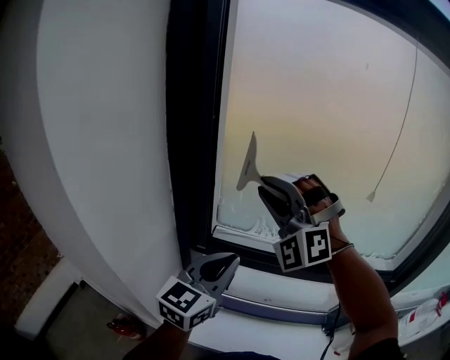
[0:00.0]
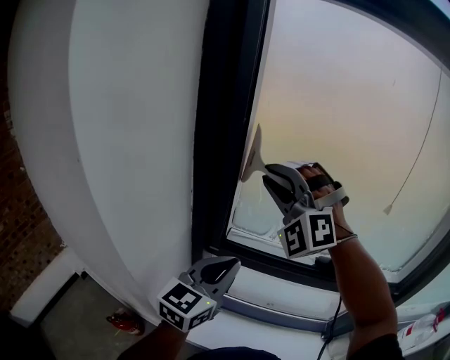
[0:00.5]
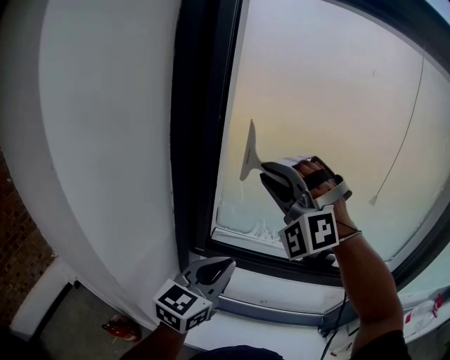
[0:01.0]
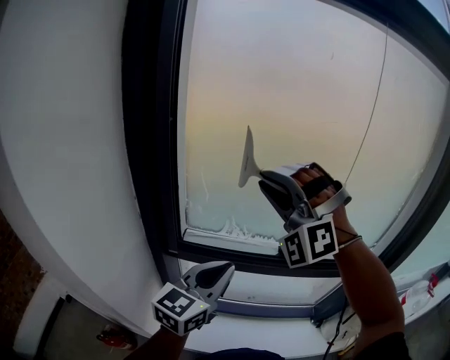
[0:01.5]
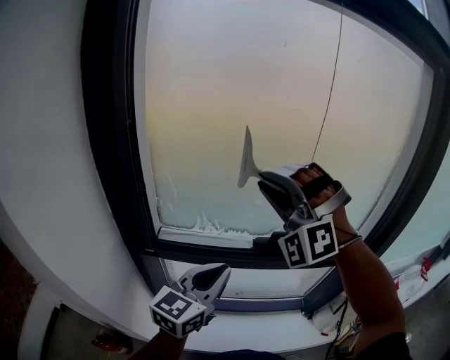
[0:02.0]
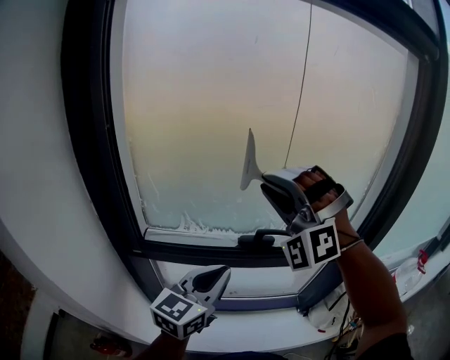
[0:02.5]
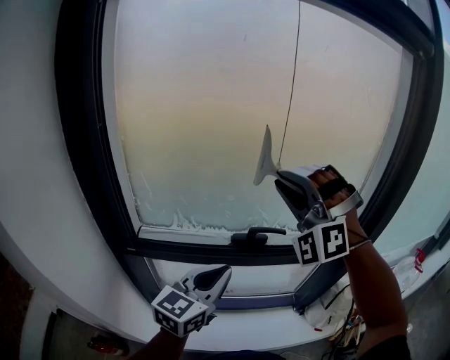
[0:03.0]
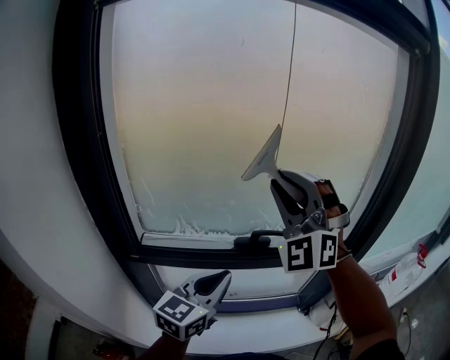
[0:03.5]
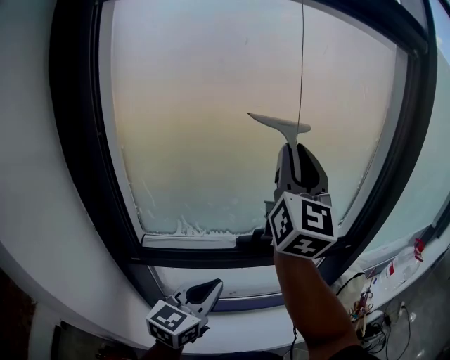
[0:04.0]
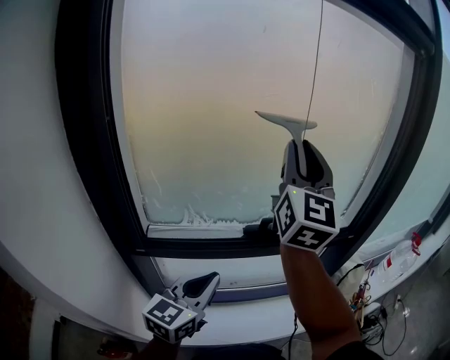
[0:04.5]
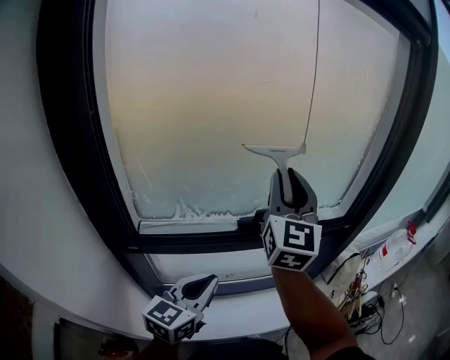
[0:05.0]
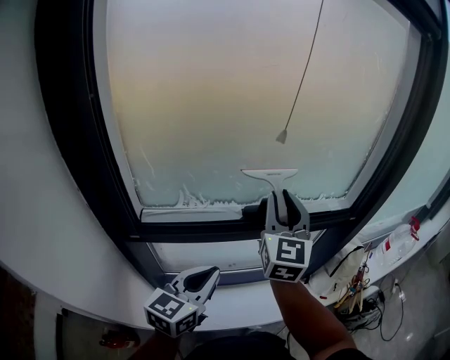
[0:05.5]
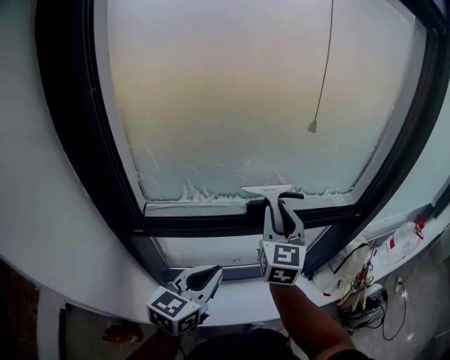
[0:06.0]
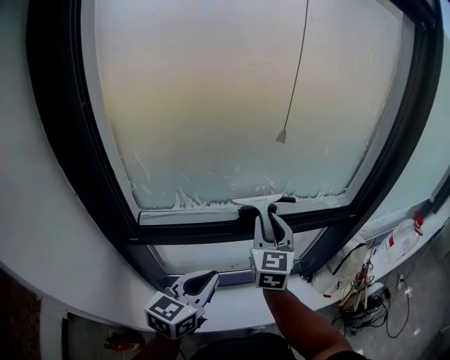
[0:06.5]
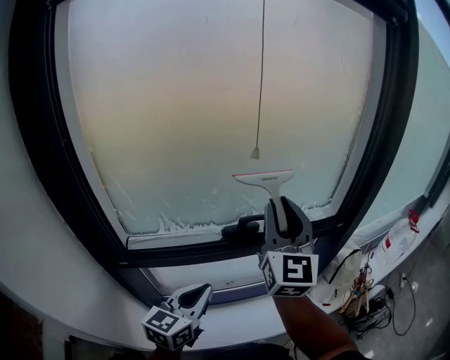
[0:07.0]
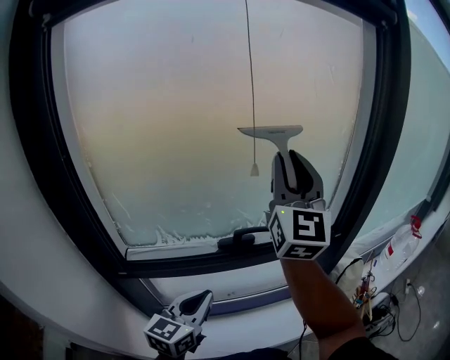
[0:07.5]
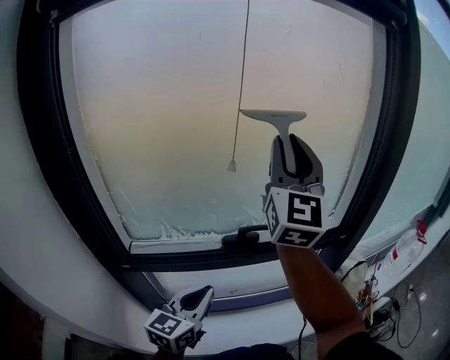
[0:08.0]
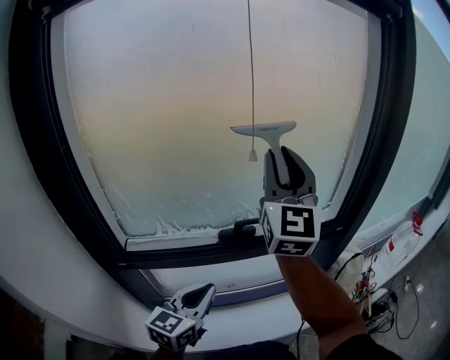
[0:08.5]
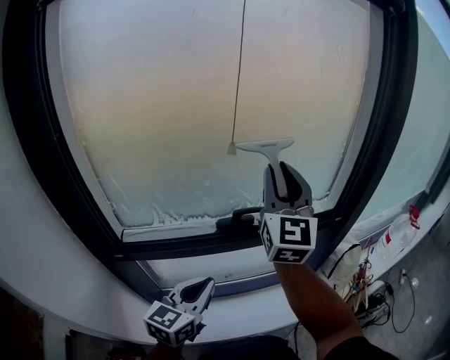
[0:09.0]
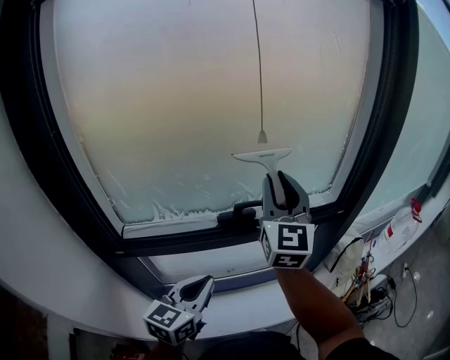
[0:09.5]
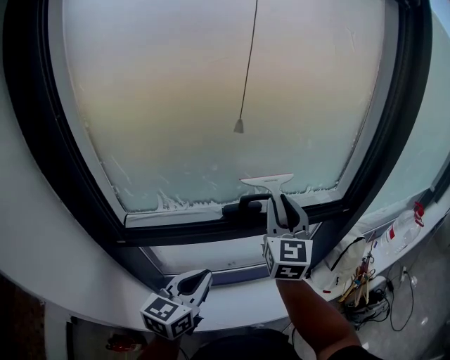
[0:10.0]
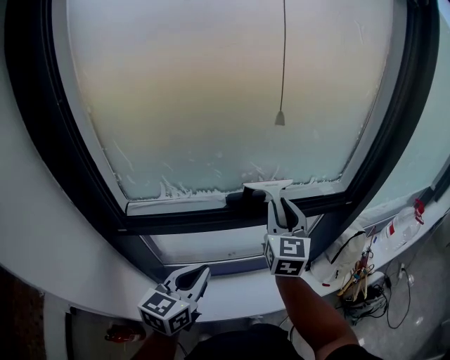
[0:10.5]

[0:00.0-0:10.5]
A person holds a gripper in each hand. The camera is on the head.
0:00.0 to 0:02.0: The grippers both shift to the right by some 15 cm.
0:02.0 to 0:04.0: The right gripper moves to the right and upward, approximately 15 cm, and rotates around the line of its fingers by approximately 90 degrees, clockwise from behind.
0:04.0 to 0:06.5: The left gripper is displaced downward by approximately 5 cm, while the right gripper travels downward by approximately 30 cm, and tilts its fingers roughly 30 degrees downward.
0:06.5 to 0:08.5: The right gripper is displaced upward by about 25 cm, and swivels roughly 30 degrees, while the left gripper moves approximately 5 cm.
0:08.5 to 0:10.5: The right gripper travels downward by some 25 cm, and swivels approximately 30 degrees, while the left gripper changes place by roughly 5 cm.

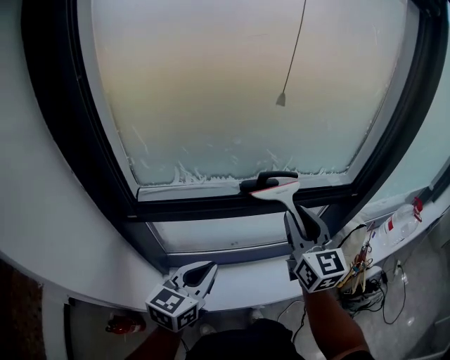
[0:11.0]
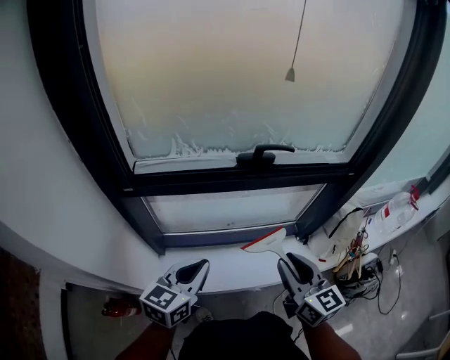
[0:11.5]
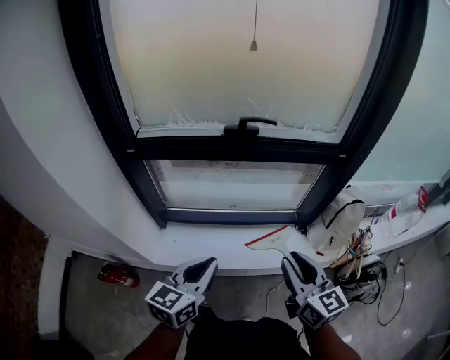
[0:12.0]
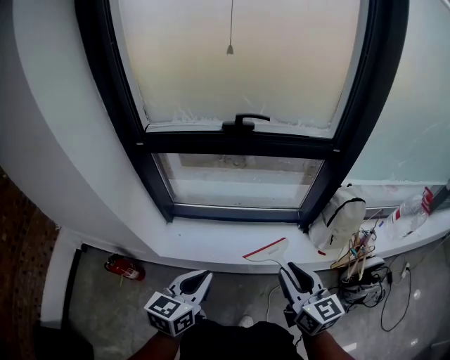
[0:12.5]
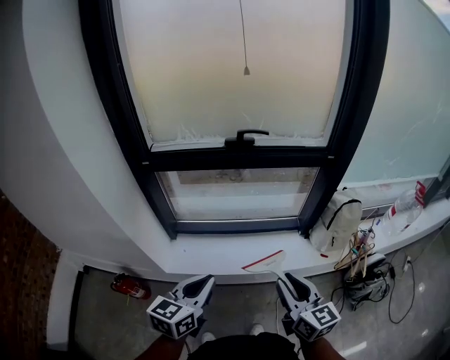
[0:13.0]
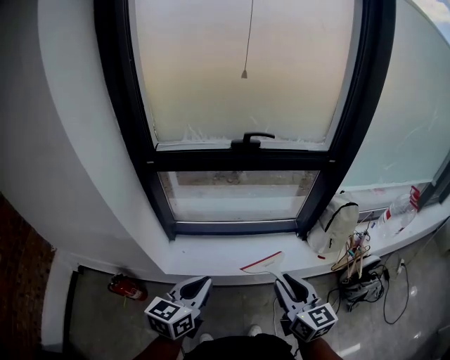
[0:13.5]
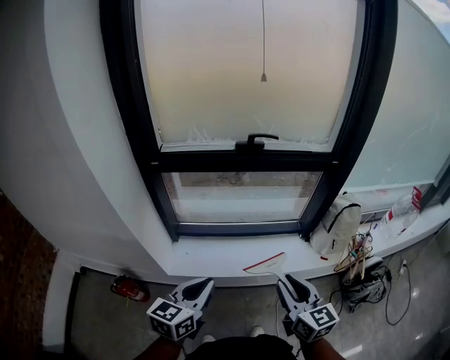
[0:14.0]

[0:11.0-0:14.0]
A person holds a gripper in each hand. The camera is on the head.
0:11.0 to 0:12.5: The left gripper shifts about 30 cm backward and to the right, while the right gripper travels backward, to the right and downward by roughly 40 cm, and turns by roughly 30 degrees.
0:12.5 to 0:14.0: The grippers both shift to the left by some 10 cm.

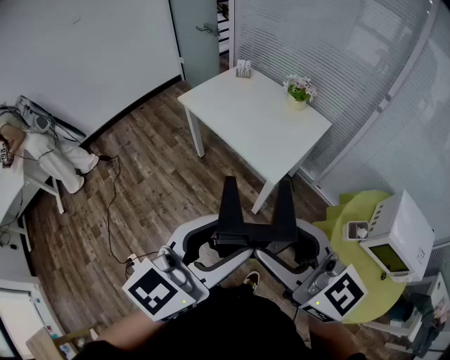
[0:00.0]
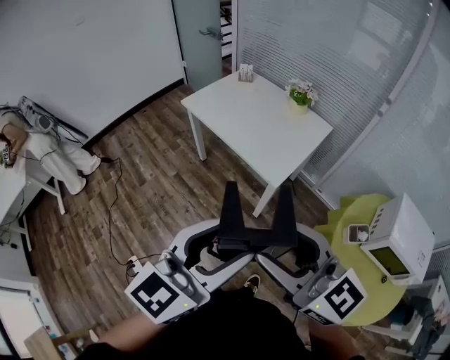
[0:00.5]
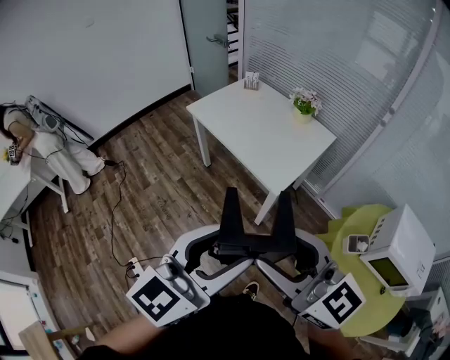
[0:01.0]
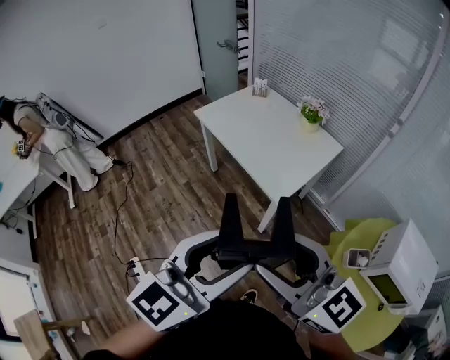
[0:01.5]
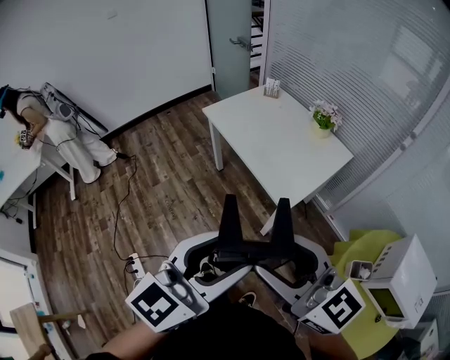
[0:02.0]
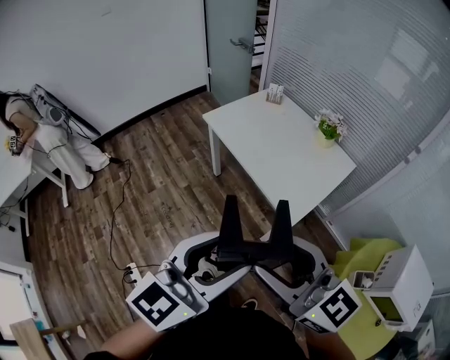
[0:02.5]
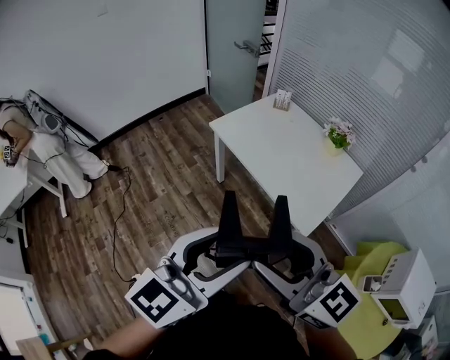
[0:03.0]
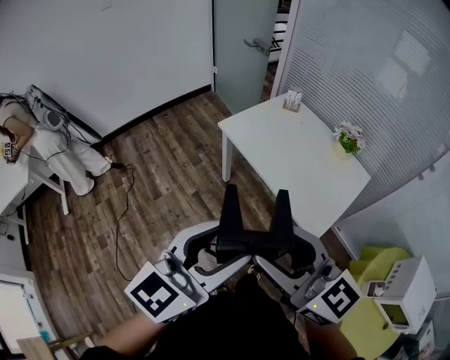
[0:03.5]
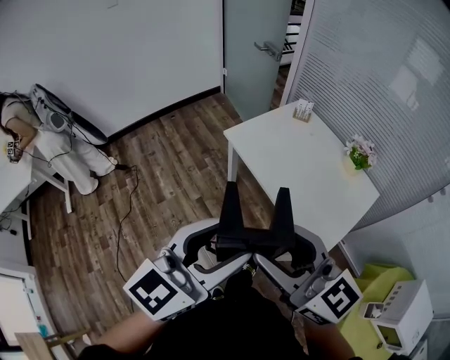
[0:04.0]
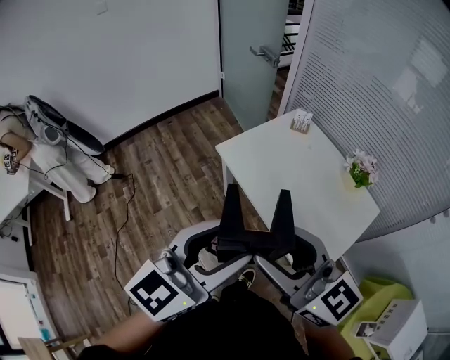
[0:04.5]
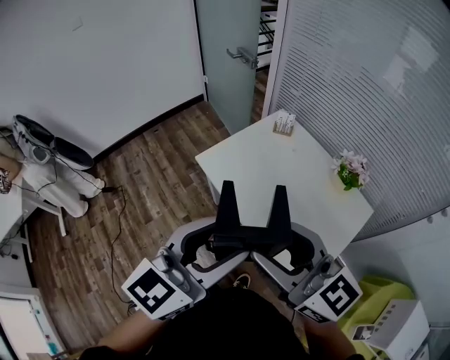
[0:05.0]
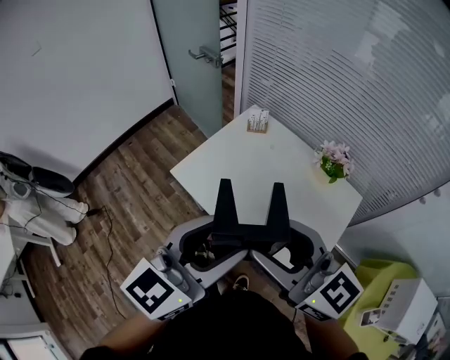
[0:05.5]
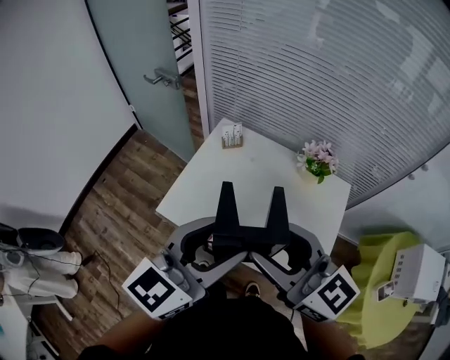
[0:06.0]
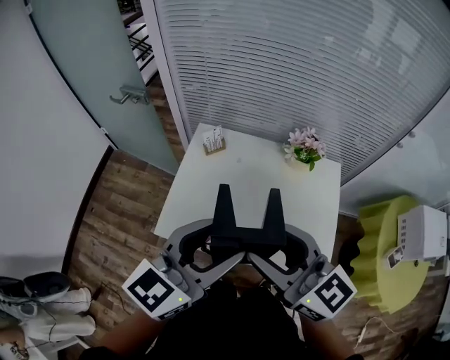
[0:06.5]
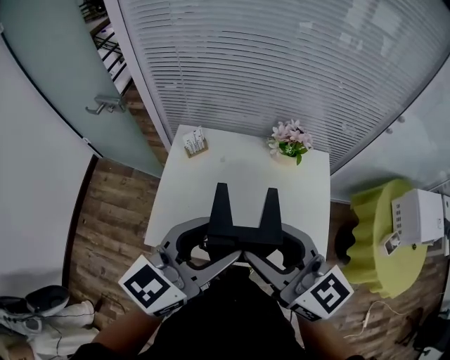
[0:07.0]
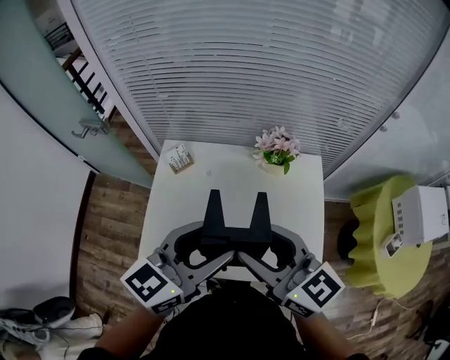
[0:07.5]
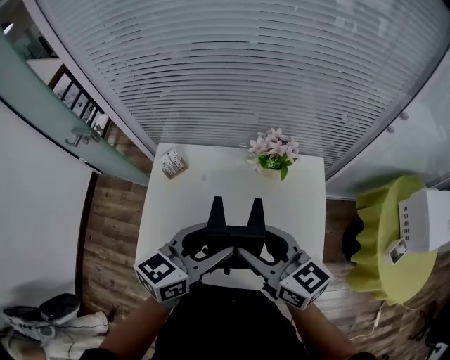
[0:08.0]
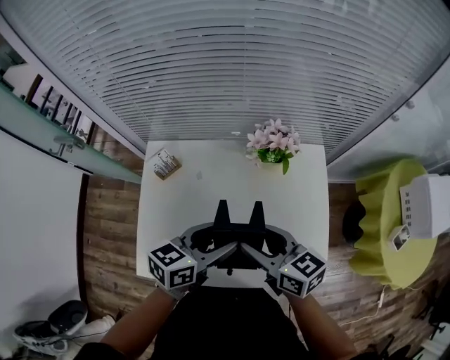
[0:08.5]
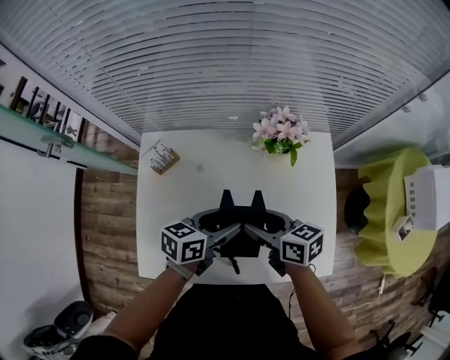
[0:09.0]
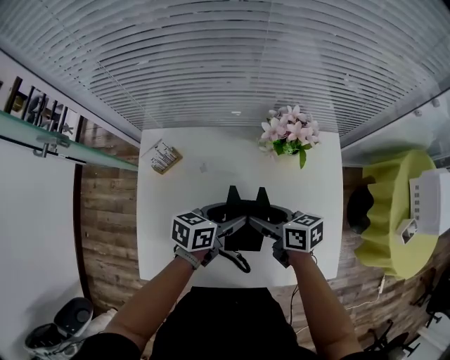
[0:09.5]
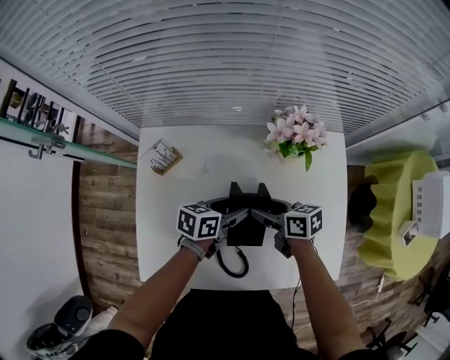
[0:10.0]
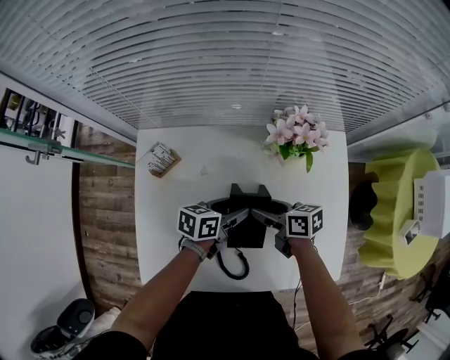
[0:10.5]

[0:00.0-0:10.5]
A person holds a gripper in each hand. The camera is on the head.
0:00.0 to 0:02.0: There are only small adjustments of the grippers.
0:02.0 to 0:04.0: Both grippers move forward and to the left, roughly 30 cm.
0:04.0 to 0:06.5: The left gripper shifts by some 40 cm, and rotates approximately 40 degrees. Meanwhile the right gripper shifts by roughly 40 cm, and turns by some 40 degrees.
0:06.5 to 0:08.5: Both grippers move downward, forward and to the right, approximately 30 cm. The right gripper swivels approximately 30 degrees. The left gripper rotates some 30 degrees.
0:08.5 to 0:10.5: The two grippers go approximately 25 cm downward and forward. The right gripper changes its angle by about 30 degrees. Meanwhile the left gripper turns by approximately 20 degrees.

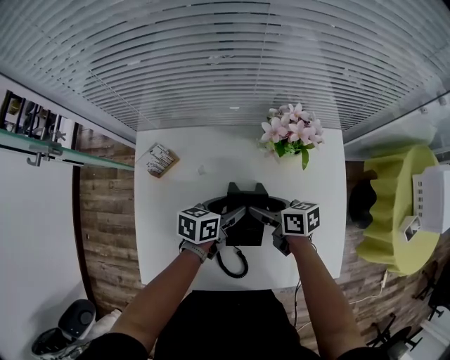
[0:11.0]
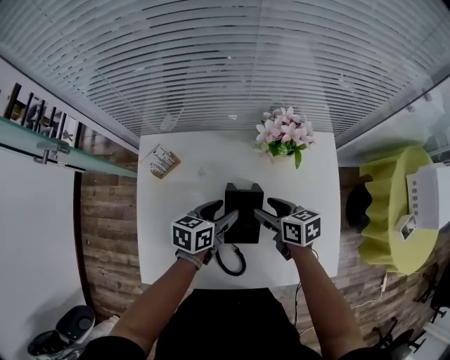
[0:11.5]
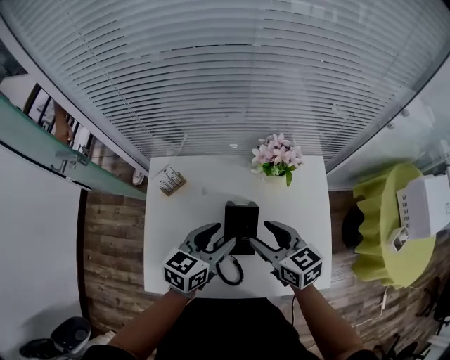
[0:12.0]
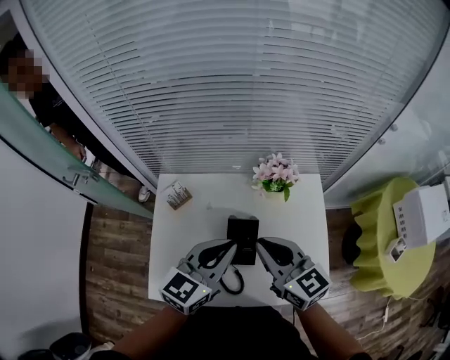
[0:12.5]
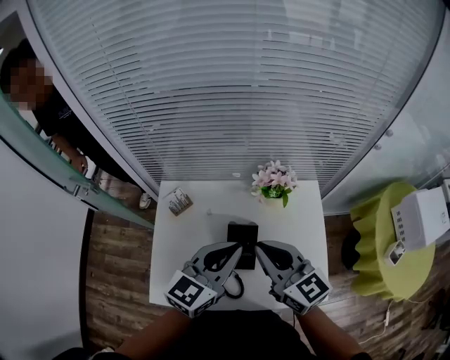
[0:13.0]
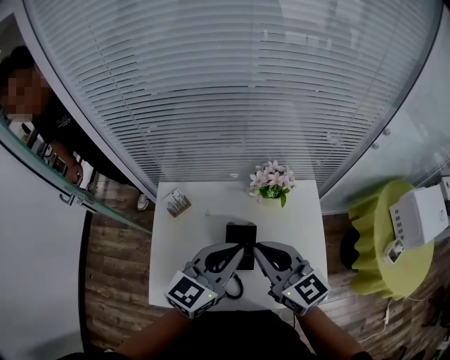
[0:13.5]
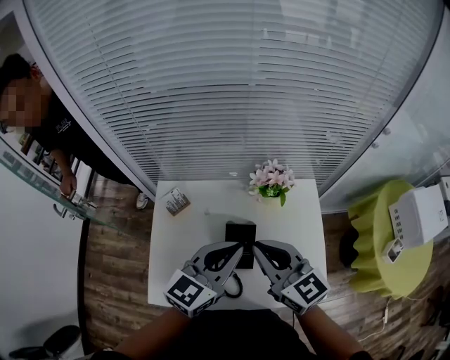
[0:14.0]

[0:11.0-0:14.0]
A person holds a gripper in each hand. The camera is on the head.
0:11.0 to 0:12.5: The grippers both shift upward by about 30 cm. The left gripper rotates about 40 degrees, and closes; the right gripper turns by about 50 degrees, and closes.
0:12.5 to 0:14.0: The grippers move only a little.
